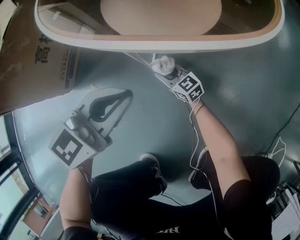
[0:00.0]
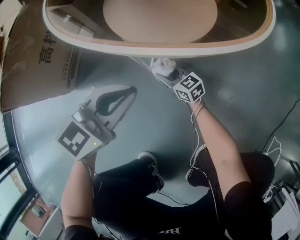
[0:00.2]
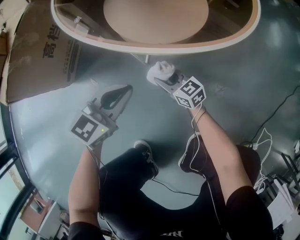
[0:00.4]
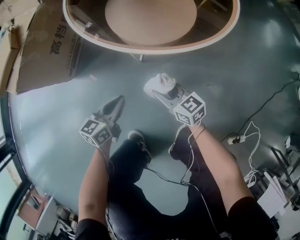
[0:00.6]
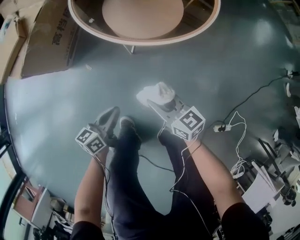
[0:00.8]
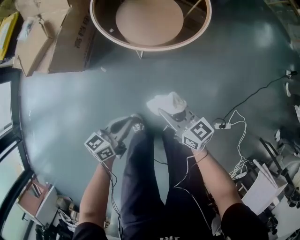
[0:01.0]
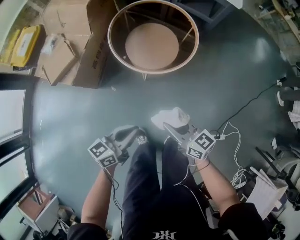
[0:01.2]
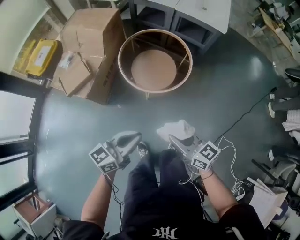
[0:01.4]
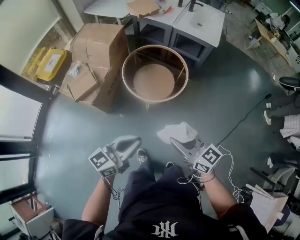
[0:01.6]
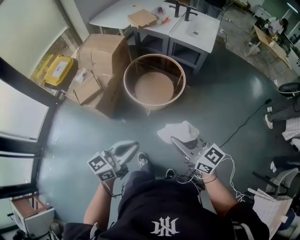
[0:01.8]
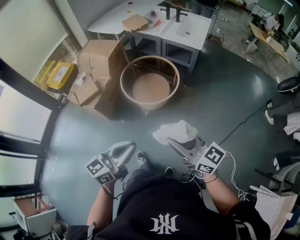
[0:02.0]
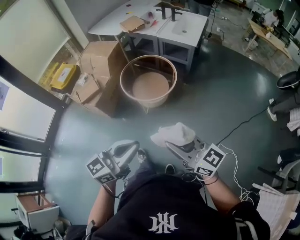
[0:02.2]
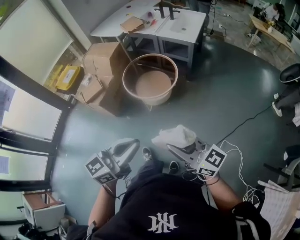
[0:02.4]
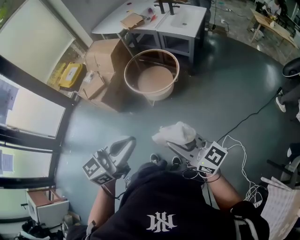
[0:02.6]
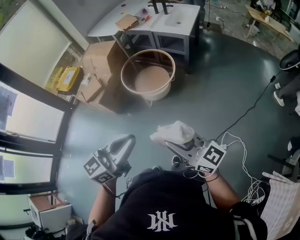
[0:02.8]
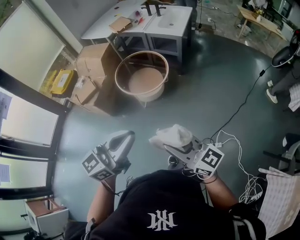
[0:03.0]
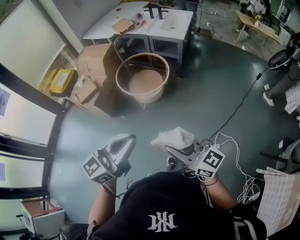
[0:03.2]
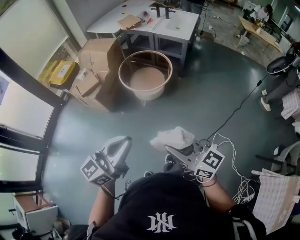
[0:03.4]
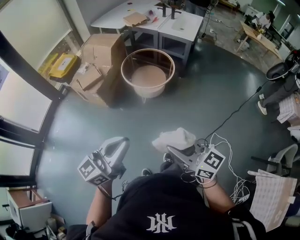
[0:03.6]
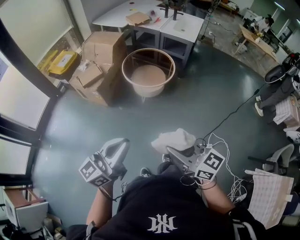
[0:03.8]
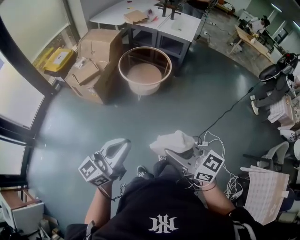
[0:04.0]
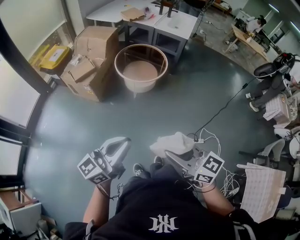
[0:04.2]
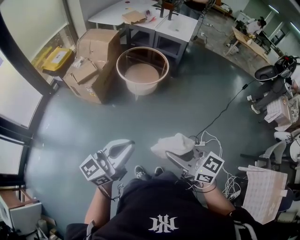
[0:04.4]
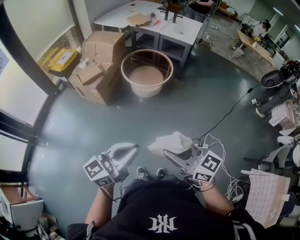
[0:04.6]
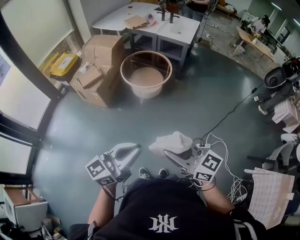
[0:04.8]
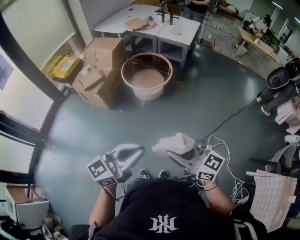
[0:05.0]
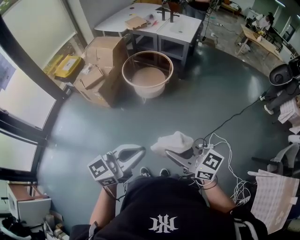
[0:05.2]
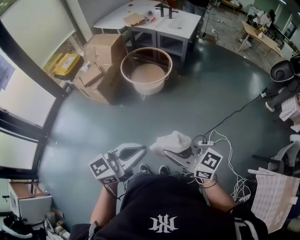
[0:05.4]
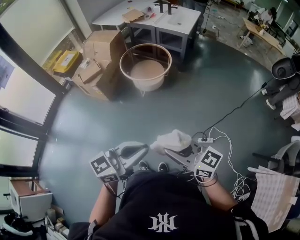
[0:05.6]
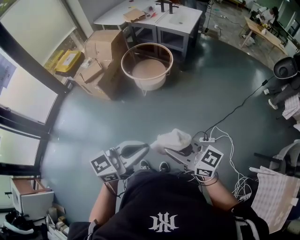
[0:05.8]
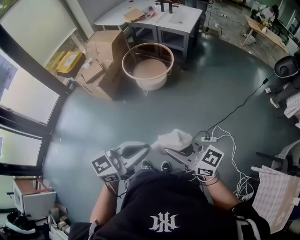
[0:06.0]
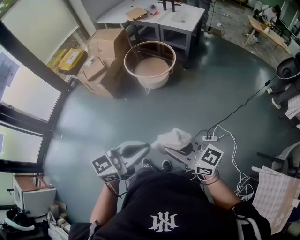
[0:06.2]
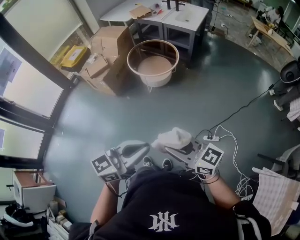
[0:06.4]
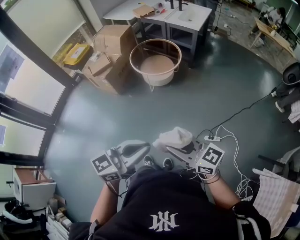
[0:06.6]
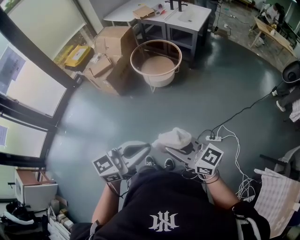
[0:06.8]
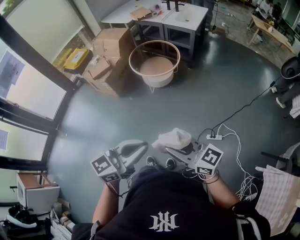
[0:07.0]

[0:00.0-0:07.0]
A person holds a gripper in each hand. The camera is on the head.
0:00.0 to 0:01.4: The grippers both shift upward by roughly 70 cm. The left gripper rotates approximately 30 degrees.
0:01.4 to 0:02.8: The two grippers go some 40 cm backward, upward and to the right. The right gripper swivels roughly 30 degrees.
0:02.8 to 0:04.2: Both grippers travel together to the left and backward, roughly 25 cm.
0:04.2 to 0:05.6: The grippers both shift to the right by approximately 20 cm.
0:05.6 to 0:07.0: The grippers move only a little.

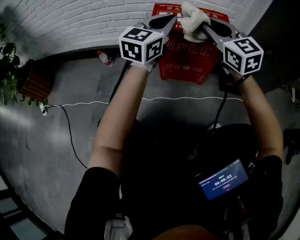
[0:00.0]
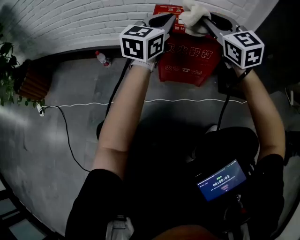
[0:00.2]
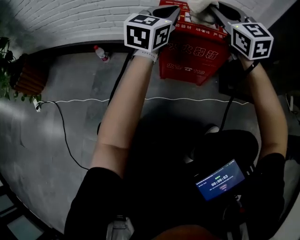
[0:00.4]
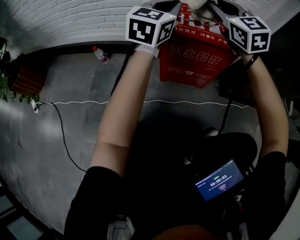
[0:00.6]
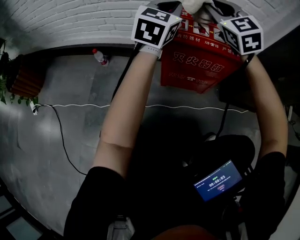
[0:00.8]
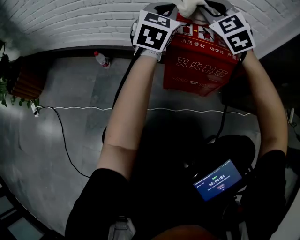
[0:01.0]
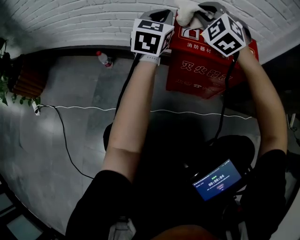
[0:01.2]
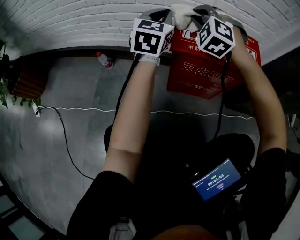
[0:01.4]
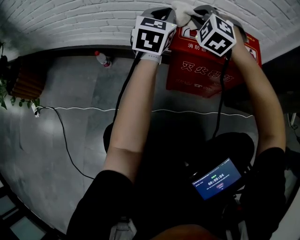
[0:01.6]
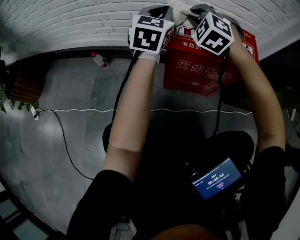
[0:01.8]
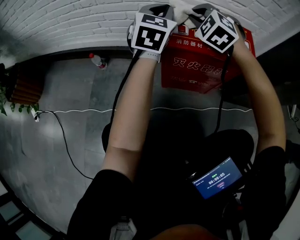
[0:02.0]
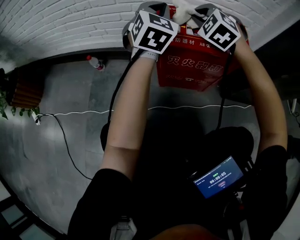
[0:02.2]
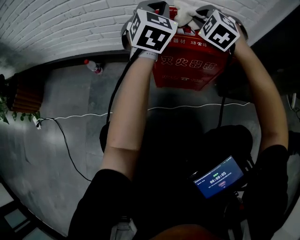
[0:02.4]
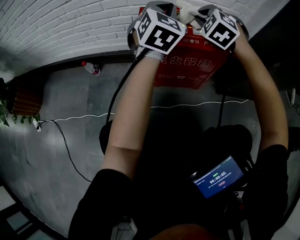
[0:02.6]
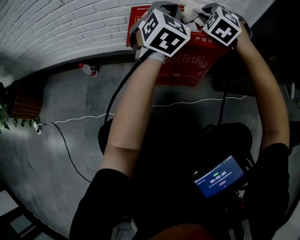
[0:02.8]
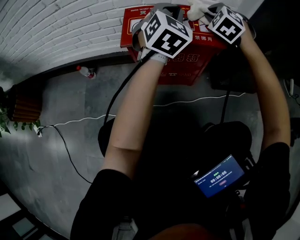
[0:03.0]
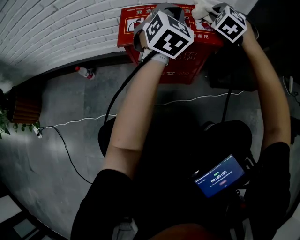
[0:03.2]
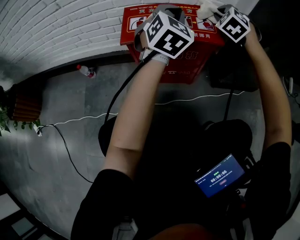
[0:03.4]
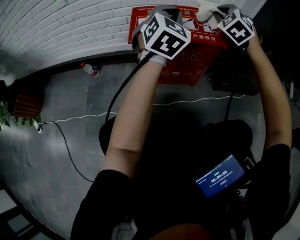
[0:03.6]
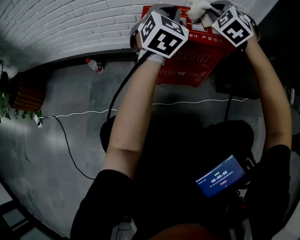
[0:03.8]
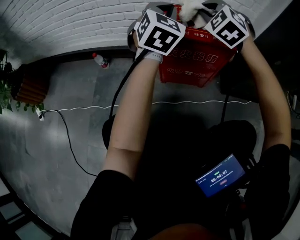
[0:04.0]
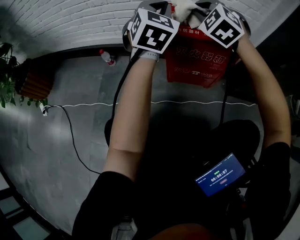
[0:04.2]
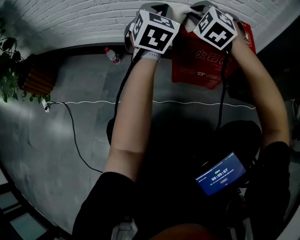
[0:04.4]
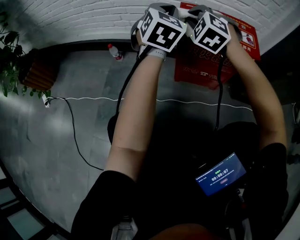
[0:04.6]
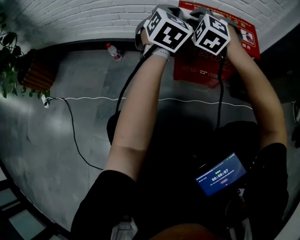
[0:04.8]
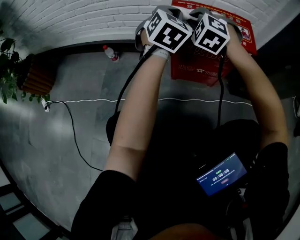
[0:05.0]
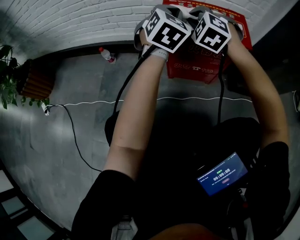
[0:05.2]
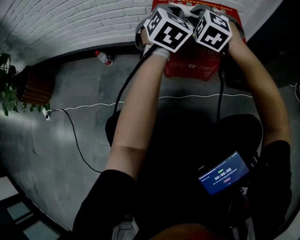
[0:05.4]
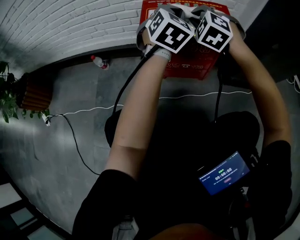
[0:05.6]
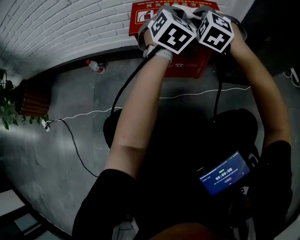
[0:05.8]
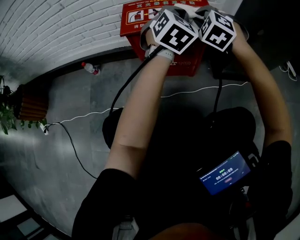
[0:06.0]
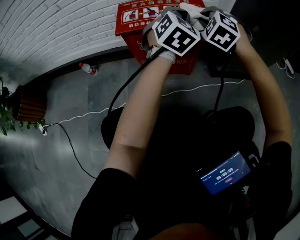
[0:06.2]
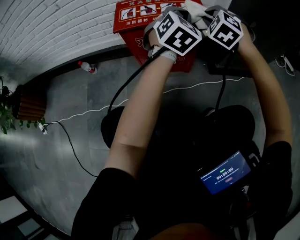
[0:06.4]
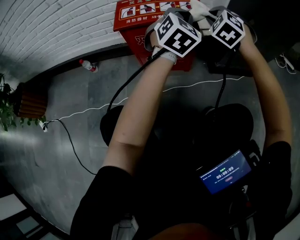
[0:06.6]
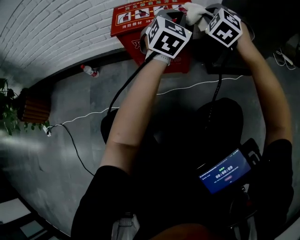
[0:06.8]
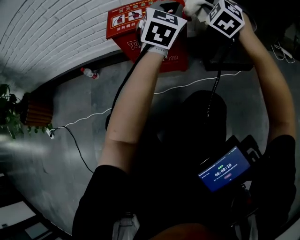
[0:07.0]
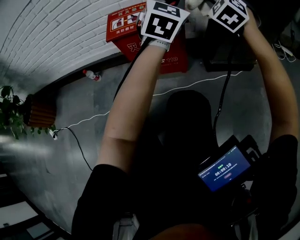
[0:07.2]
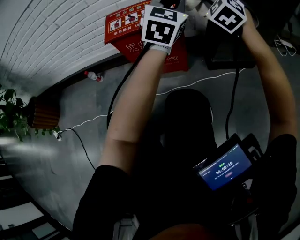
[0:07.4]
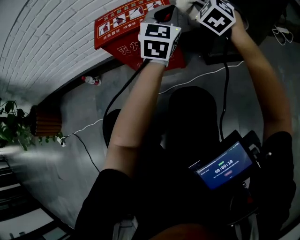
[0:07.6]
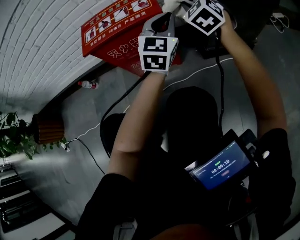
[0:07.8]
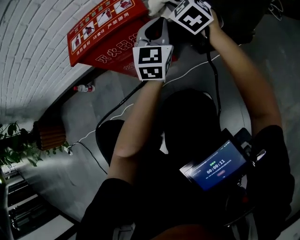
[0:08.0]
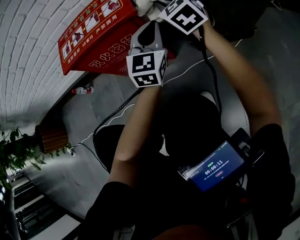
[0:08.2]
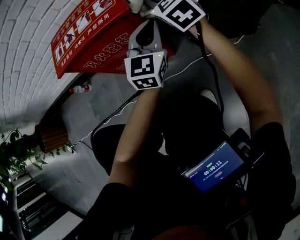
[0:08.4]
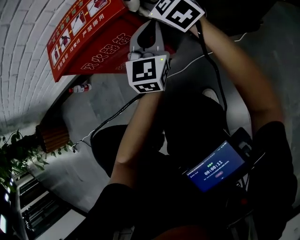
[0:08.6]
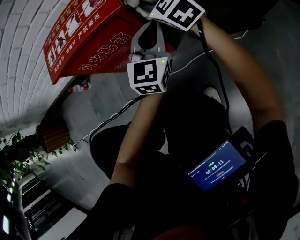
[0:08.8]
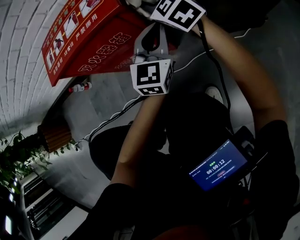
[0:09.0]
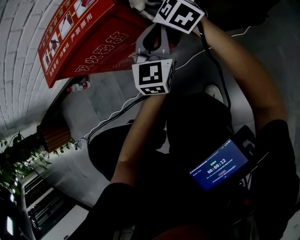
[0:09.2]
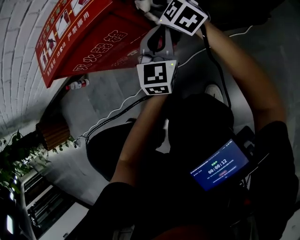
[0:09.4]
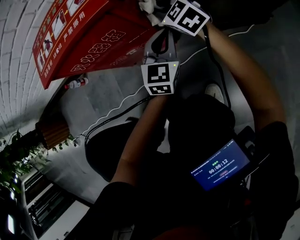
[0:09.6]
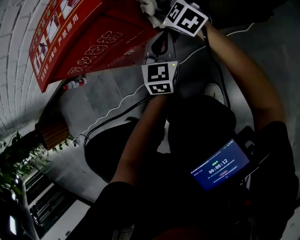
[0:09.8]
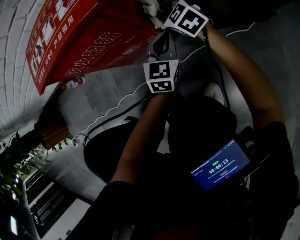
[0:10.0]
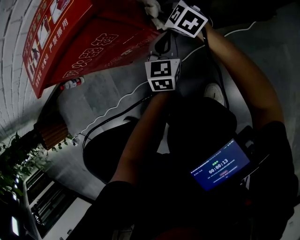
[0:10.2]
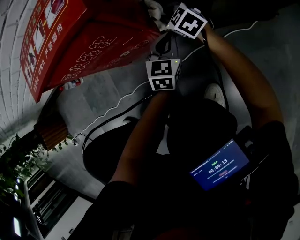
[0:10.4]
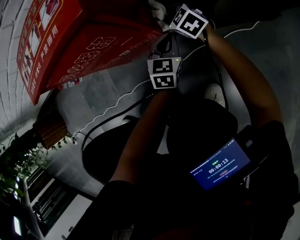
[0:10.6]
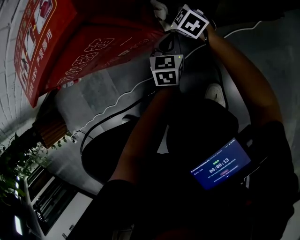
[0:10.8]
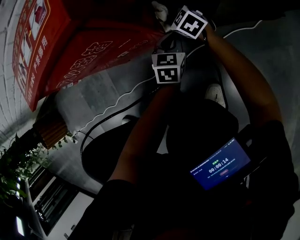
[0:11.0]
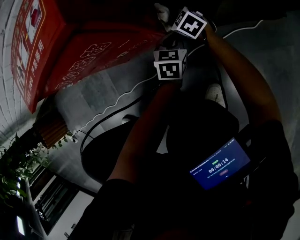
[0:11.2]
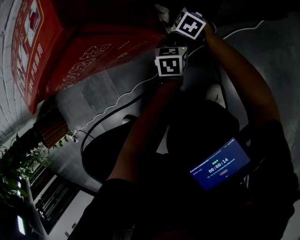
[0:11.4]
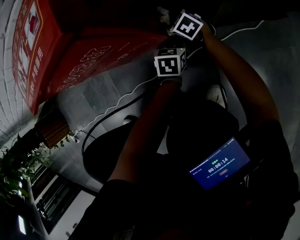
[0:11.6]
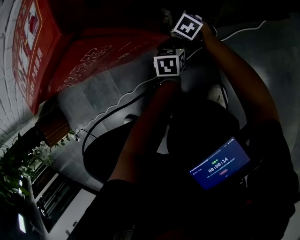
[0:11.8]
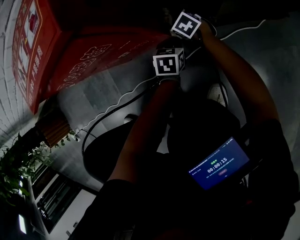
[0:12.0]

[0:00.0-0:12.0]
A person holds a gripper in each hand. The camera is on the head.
0:00.0 to 0:01.6: The right gripper heads forward, to the left and downward, covering roughly 25 cm, and rotates around the line of its fingers by about 50 degrees, counterclockwise from behind. The left gripper moves forward and to the left, some 20 cm, and turns by about 20 degrees.
0:01.6 to 0:03.0: Both grippers travel together to the right, approximately 25 cm. The right gripper turns by roughly 20 degrees, while the left gripper turns by some 30 degrees.
0:03.0 to 0:04.4: The two grippers go roughly 25 cm to the left and backward.
0:04.4 to 0:06.0: The two grippers go about 25 cm to the right. The left gripper turns by some 20 degrees.
0:06.0 to 0:07.6: The grippers both shift to the right by approximately 15 cm. The right gripper turns by approximately 20 degrees.
0:07.6 to 0:09.0: The two grippers go approximately 20 cm downward. The right gripper turns by some 30 degrees.
0:09.0 to 0:10.4: The two grippers go approximately 20 cm downward. The left gripper swivels some 20 degrees.
0:10.4 to 0:12.0: Both grippers move downward, approximately 15 cm. The left gripper turns by about 30 degrees. The right gripper changes its angle by about 20 degrees.

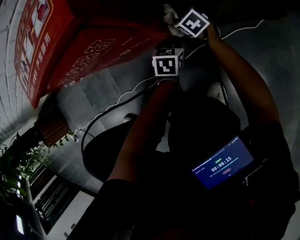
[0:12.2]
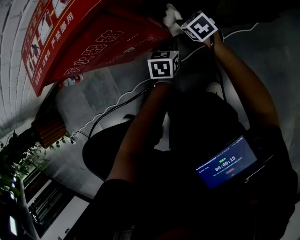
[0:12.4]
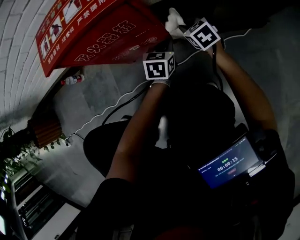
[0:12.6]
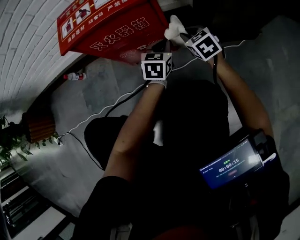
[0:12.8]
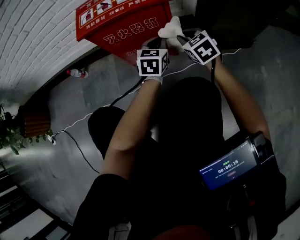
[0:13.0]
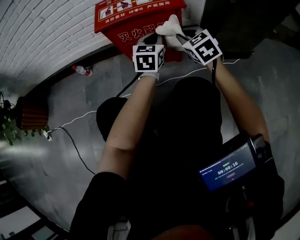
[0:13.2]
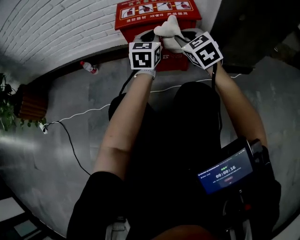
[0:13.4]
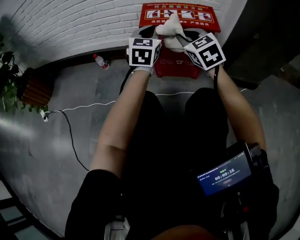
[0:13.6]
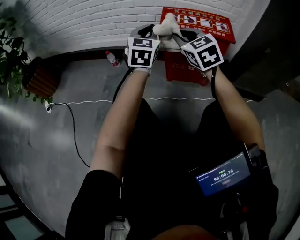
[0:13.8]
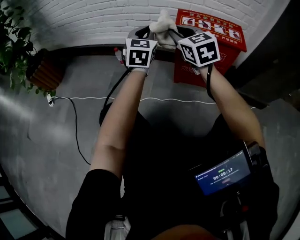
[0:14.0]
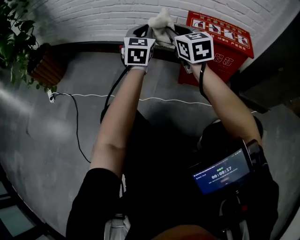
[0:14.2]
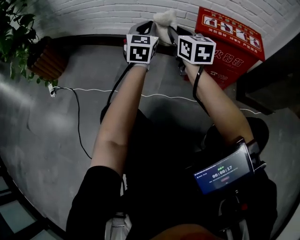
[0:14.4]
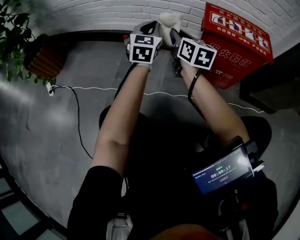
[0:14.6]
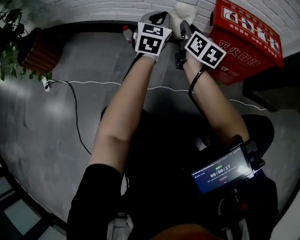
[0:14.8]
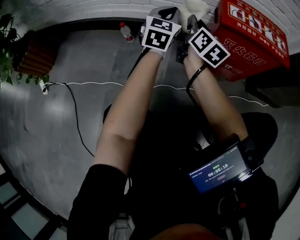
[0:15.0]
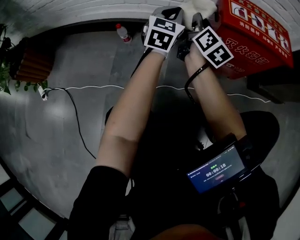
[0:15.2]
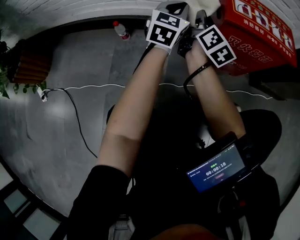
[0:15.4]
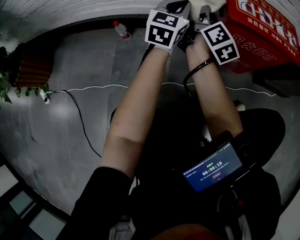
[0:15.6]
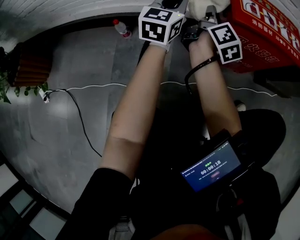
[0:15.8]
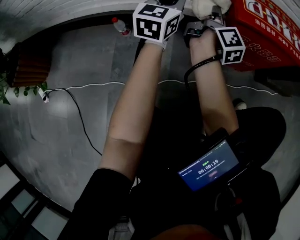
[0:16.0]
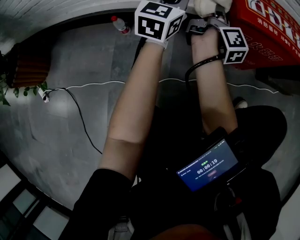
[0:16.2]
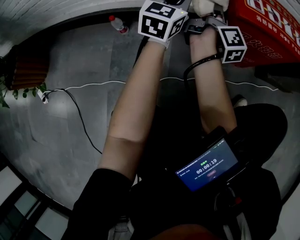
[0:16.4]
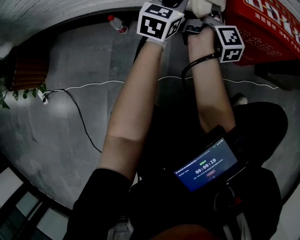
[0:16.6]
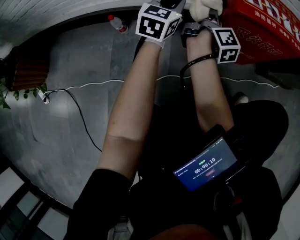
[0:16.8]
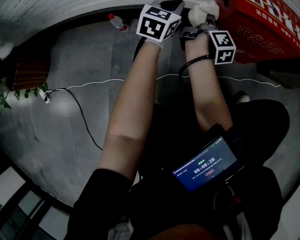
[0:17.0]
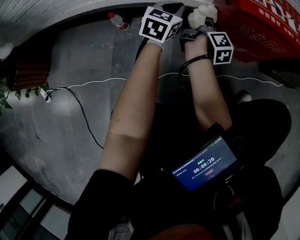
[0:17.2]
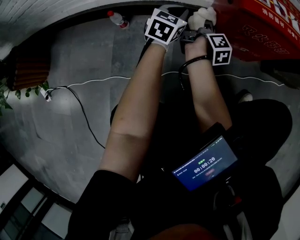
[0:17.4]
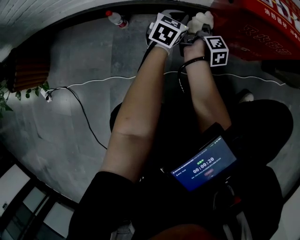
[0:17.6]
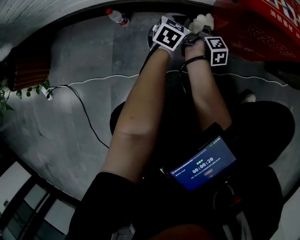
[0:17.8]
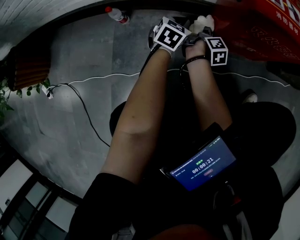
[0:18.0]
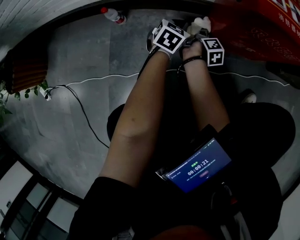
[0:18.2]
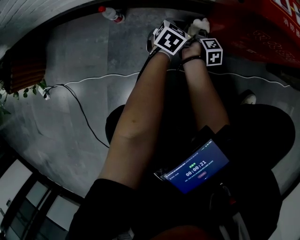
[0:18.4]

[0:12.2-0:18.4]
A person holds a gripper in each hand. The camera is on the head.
0:12.2 to 0:13.8: The grippers both shift upward and to the left by roughly 60 cm. The right gripper tilts its fingers some 30 degrees upward. The left gripper tips its fingers upward by some 40 degrees.
0:13.8 to 0:15.4: The left gripper moves roughly 20 cm; the right gripper moves about 25 cm, and rotates around the line of its fingers by roughly 60 degrees, clockwise from behind.
0:15.4 to 0:16.8: The right gripper travels downward and to the right by roughly 10 cm, and changes its angle by some 40 degrees.
0:16.8 to 0:18.4: Both grippers travel together downward, roughly 25 cm. The left gripper turns by some 30 degrees; the right gripper swivels roughly 30 degrees.
